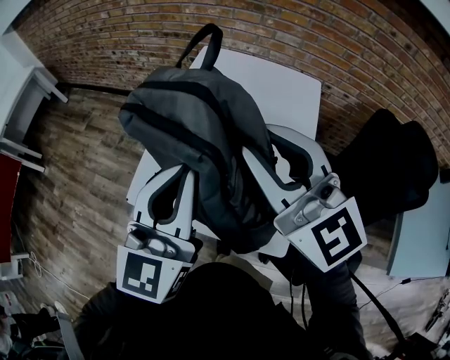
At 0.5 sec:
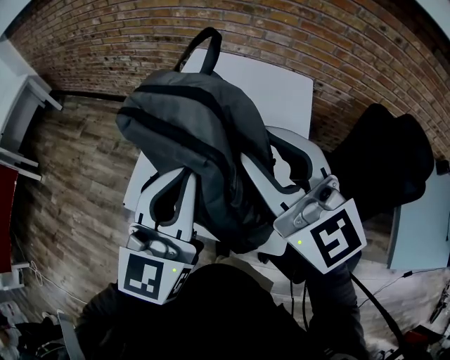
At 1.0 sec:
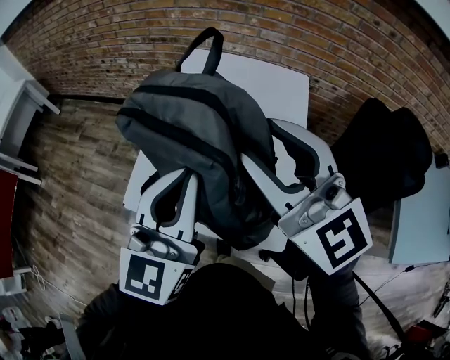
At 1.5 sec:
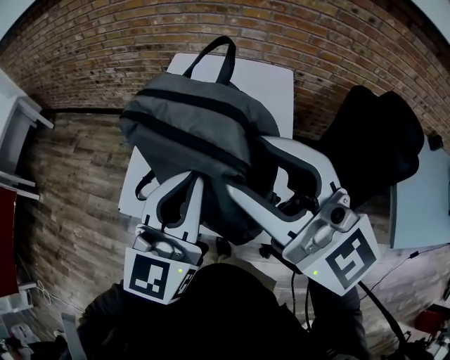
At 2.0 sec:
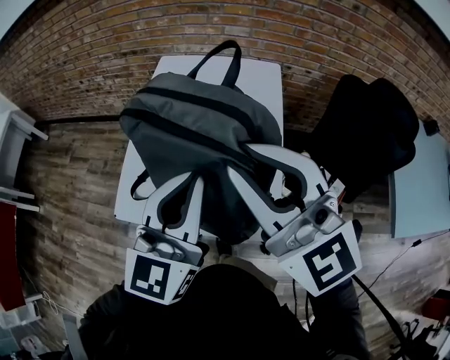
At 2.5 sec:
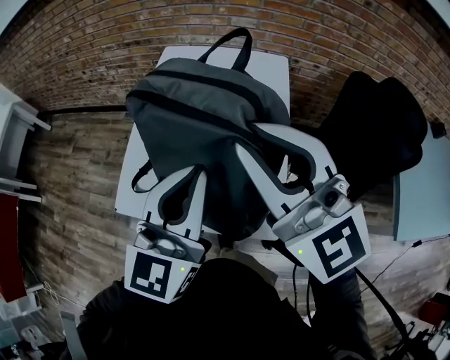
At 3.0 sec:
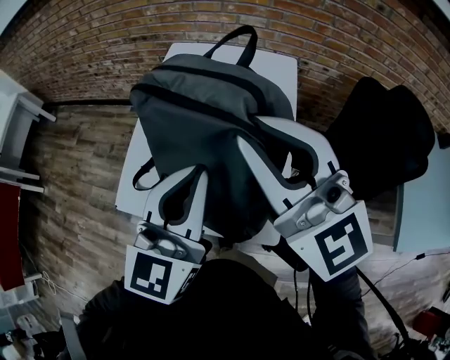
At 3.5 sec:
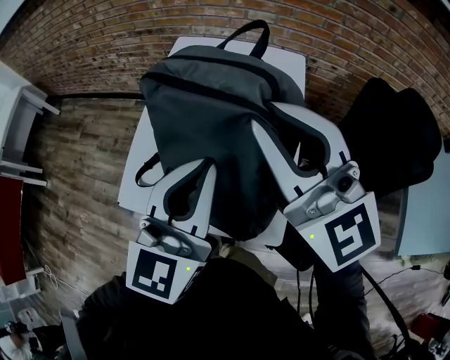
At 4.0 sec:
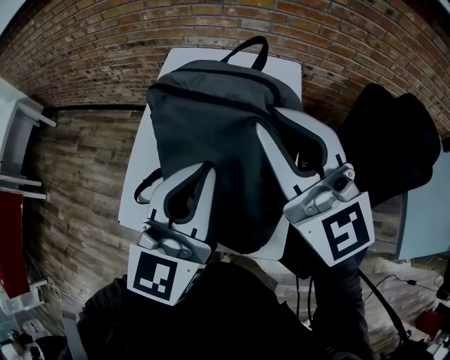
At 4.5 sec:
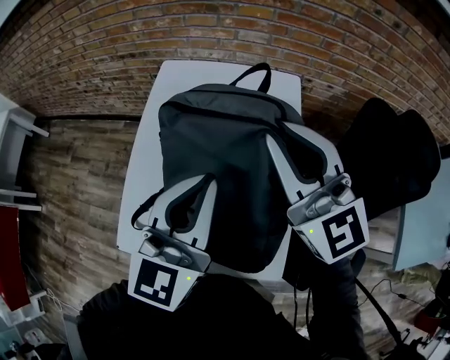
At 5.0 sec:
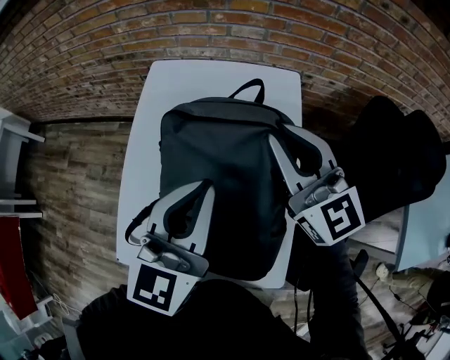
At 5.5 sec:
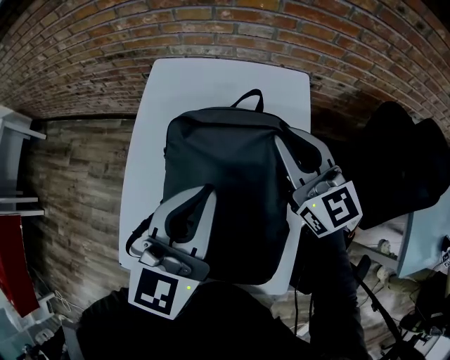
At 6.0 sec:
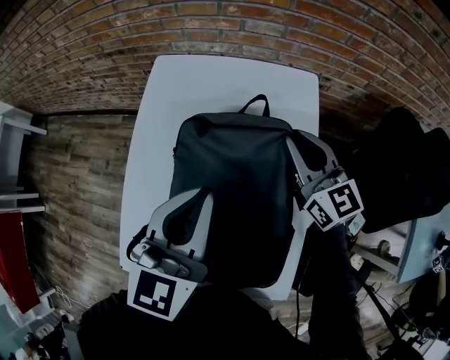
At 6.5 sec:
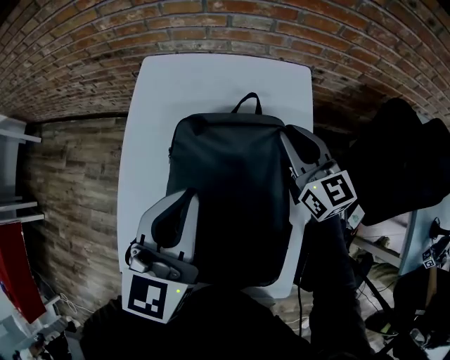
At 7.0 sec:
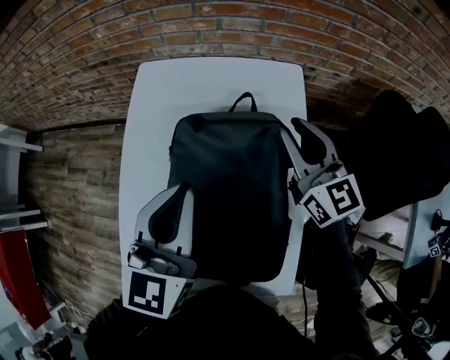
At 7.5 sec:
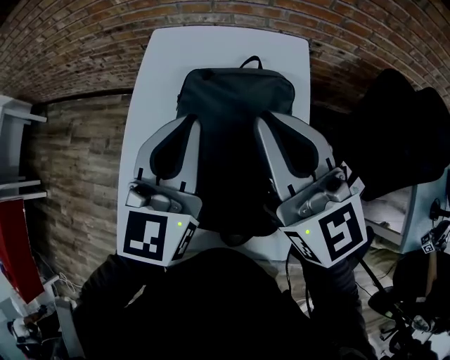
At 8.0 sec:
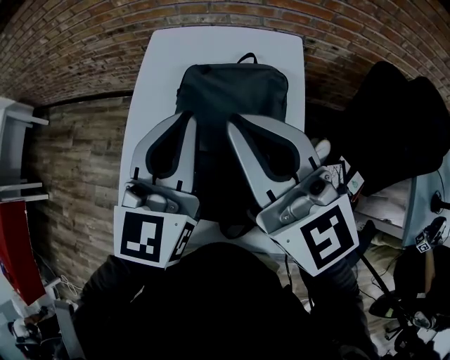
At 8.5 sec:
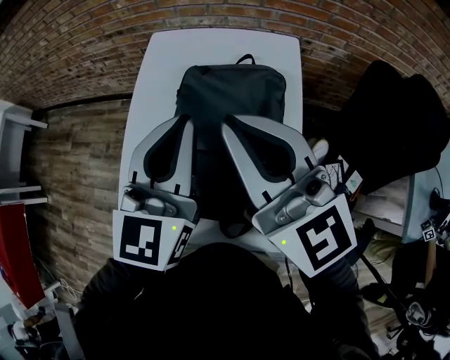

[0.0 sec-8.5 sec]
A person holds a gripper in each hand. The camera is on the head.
0.0 sec to 2.0 sec: The left gripper shifts some 10 cm to the right; the right gripper heads backward, covering some 10 cm.
2.0 sec to 4.0 sec: The right gripper shifts approximately 15 cm forward. The left gripper heads forward, covering roughly 10 cm.
4.0 sec to 6.5 sec: The right gripper moves downward and forward, approximately 35 cm, and turns by some 30 degrees; the left gripper shifts about 20 cm forward and downward.
6.5 sec to 8.5 sec: The left gripper goes about 10 cm upward and backward. The right gripper shifts roughly 30 cm upward, backward and to the left.

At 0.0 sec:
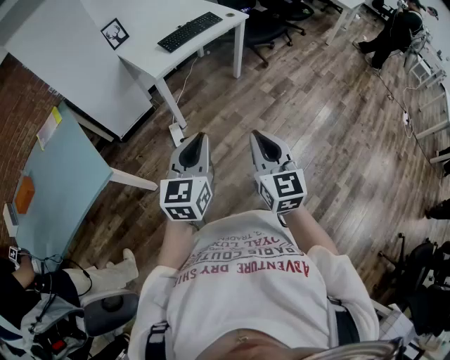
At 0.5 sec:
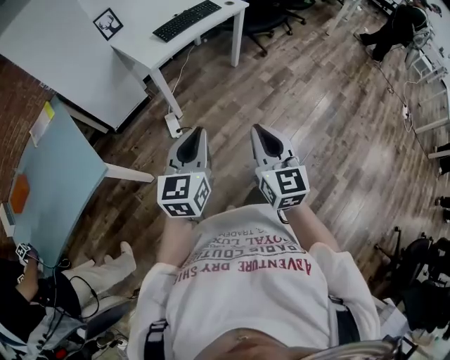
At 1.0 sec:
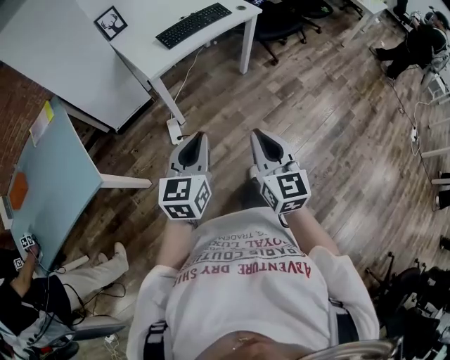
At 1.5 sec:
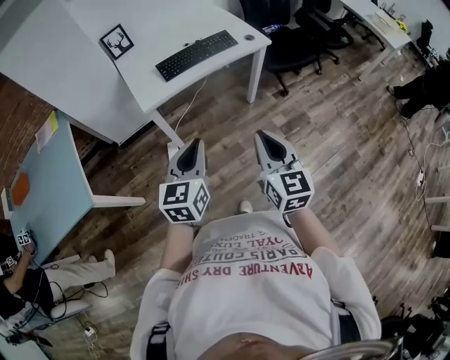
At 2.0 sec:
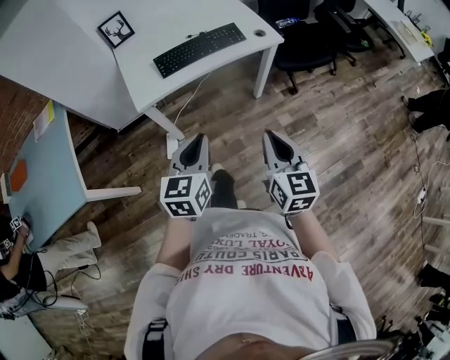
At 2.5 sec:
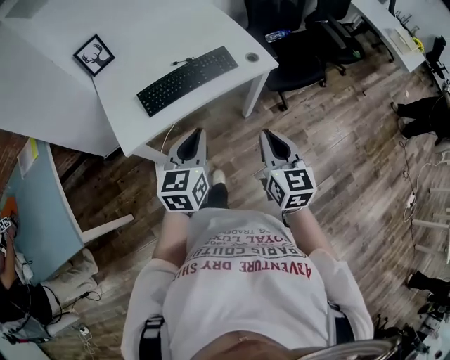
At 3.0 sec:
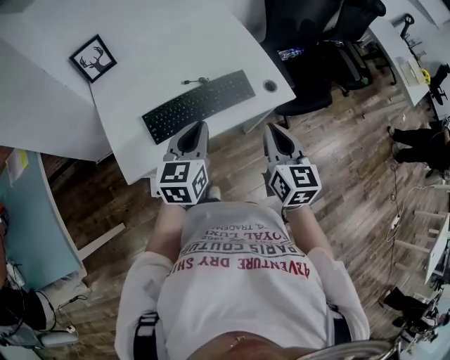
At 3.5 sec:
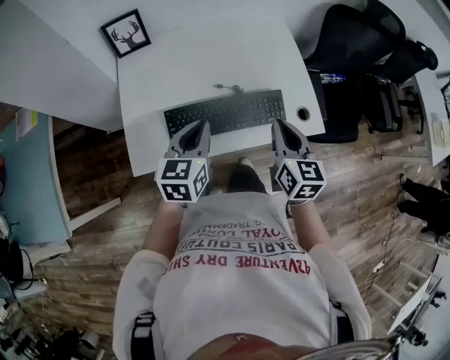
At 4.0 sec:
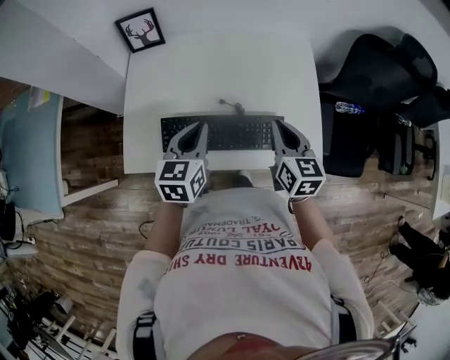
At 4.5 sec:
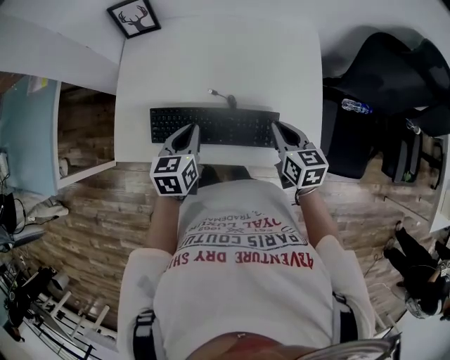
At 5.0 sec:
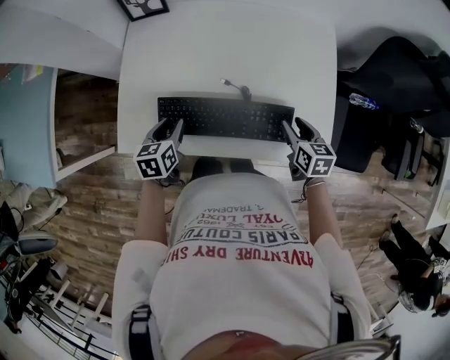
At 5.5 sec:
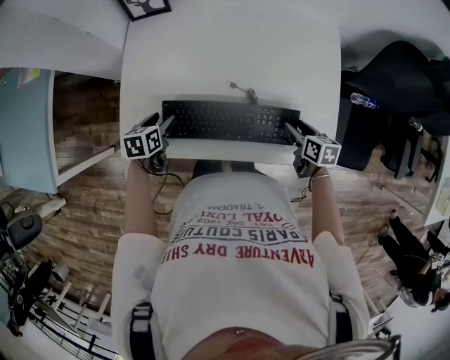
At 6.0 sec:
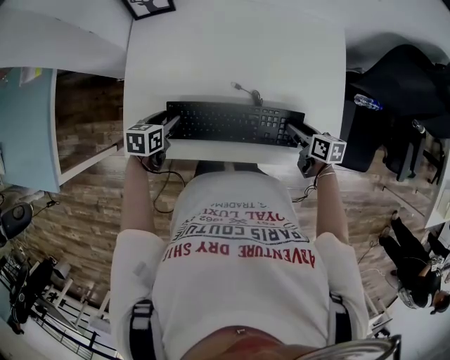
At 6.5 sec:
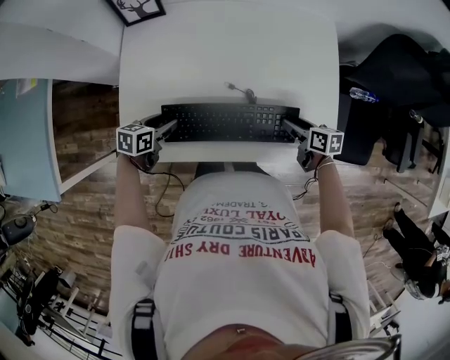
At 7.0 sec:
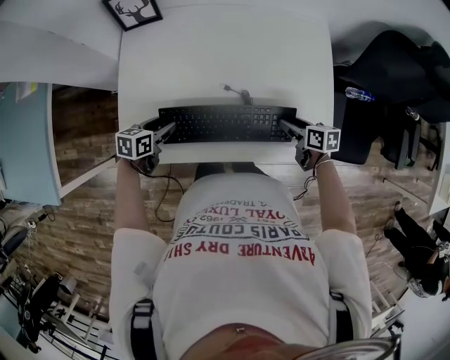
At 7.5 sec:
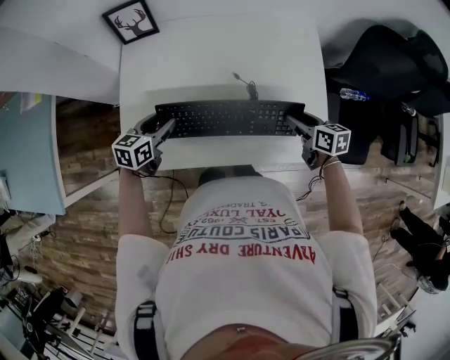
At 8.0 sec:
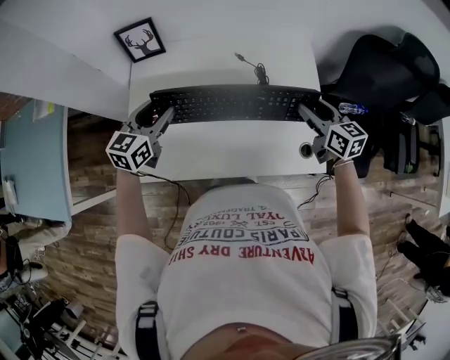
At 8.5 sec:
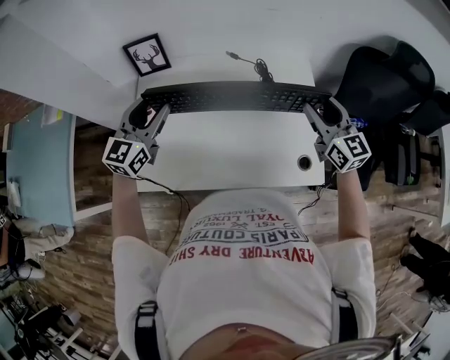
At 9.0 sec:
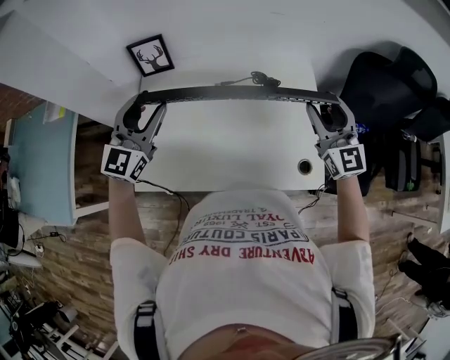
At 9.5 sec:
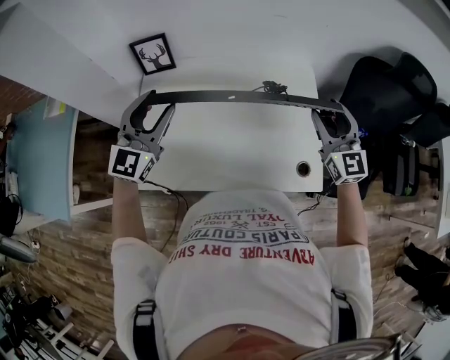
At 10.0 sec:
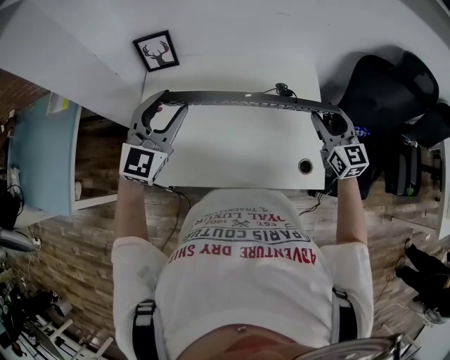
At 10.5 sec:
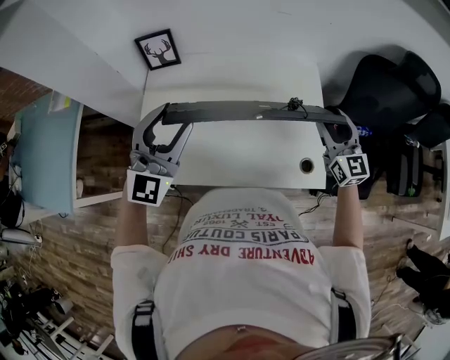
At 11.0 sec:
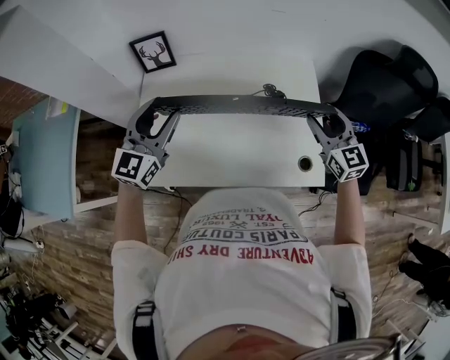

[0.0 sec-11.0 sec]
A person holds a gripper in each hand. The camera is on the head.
0.0 sec to 2.0 sec: Both grippers are carried forward and to the right, roughly 40 cm. The left gripper swivels roughly 20 degrees.
2.0 sec to 3.5 sec: The pair of grippers is taken forward, about 50 cm.
3.5 sec to 5.5 sec: The left gripper travels downward and to the left by some 25 cm, tilts its fingers approximately 30 degrees downward, and opens. The right gripper shifts approximately 30 cm downward, to the right and forward, turns by some 40 degrees, and opens.
5.5 sec to 7.5 sec: The two grippers go about 10 cm upward. The left gripper rotates approximately 30 degrees.
7.5 sec to 9.0 sec: The grippers both shift upward by some 25 cm. The right gripper tilts its fingers approximately 40 degrees upward, while the left gripper tilts its fingers some 30 degrees upward.
9.0 sec to 11.0 sec: The right gripper is displaced downward by about 5 cm.

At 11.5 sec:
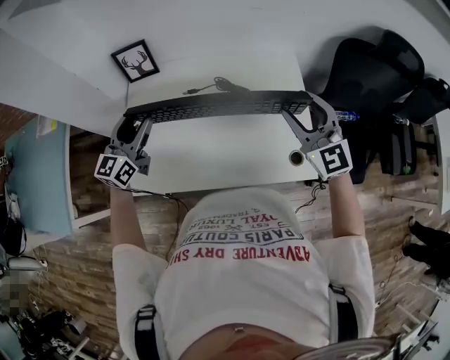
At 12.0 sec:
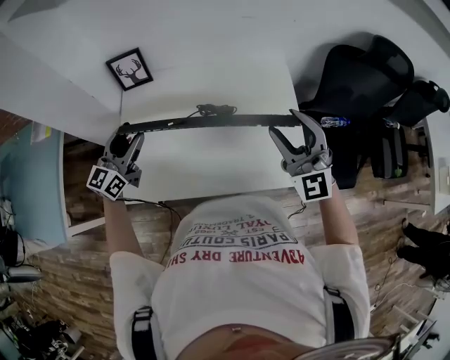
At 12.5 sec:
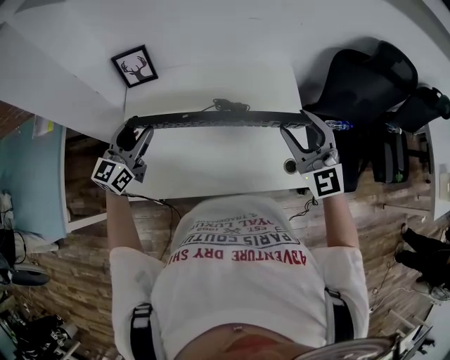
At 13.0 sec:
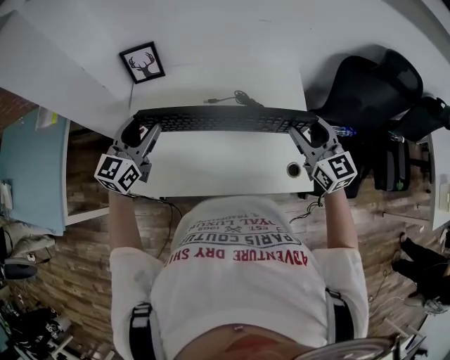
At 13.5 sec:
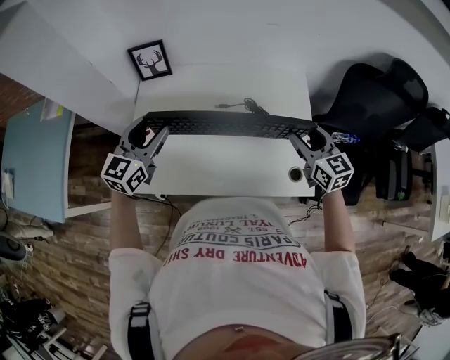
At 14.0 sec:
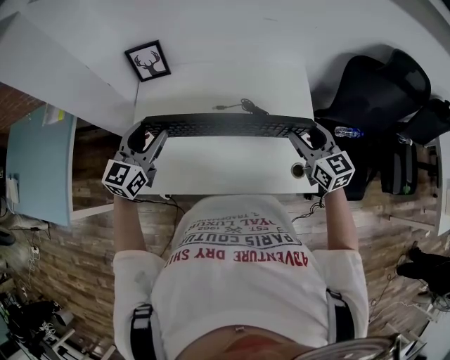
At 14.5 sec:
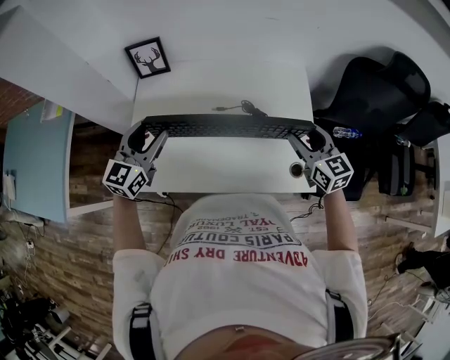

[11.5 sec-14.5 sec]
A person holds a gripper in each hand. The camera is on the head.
11.5 sec to 13.0 sec: The right gripper ends up roughly 5 cm from where it was, and rotates approximately 20 degrees.
13.0 sec to 14.5 sec: The right gripper goes some 5 cm downward.

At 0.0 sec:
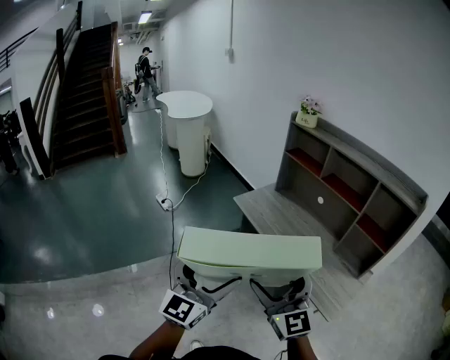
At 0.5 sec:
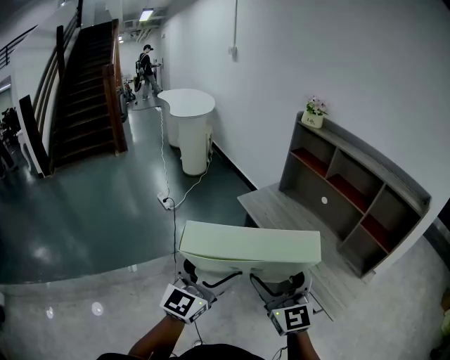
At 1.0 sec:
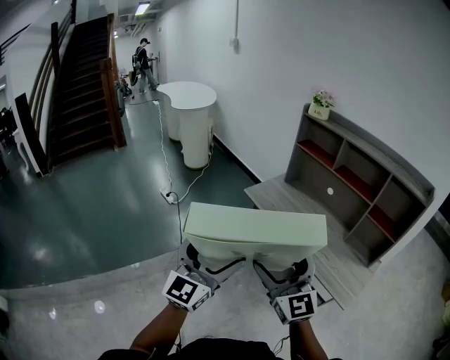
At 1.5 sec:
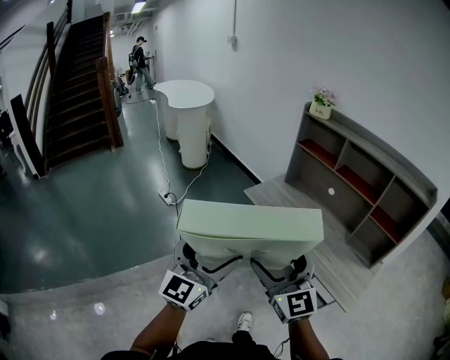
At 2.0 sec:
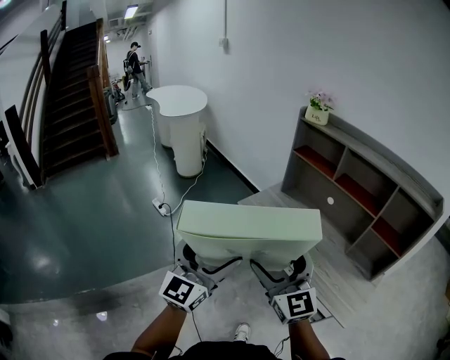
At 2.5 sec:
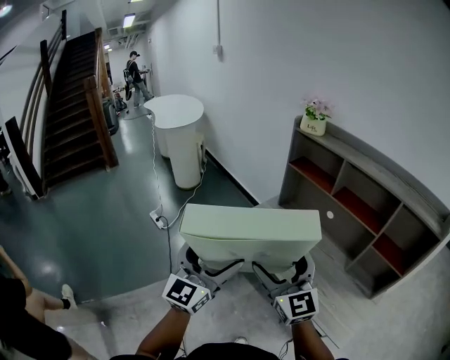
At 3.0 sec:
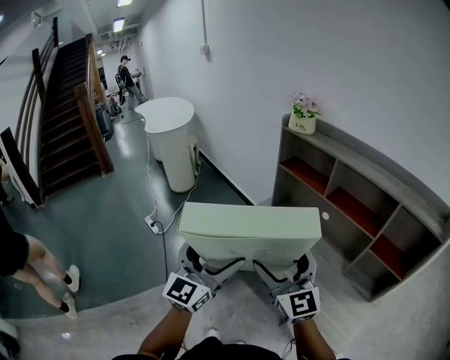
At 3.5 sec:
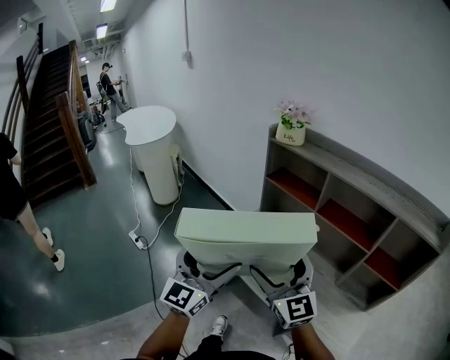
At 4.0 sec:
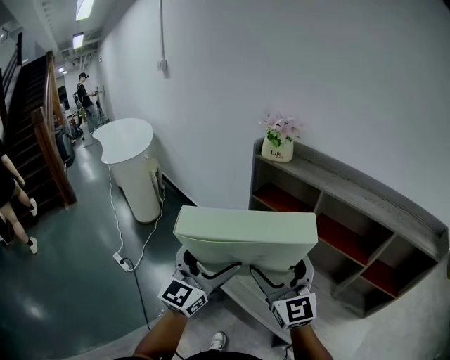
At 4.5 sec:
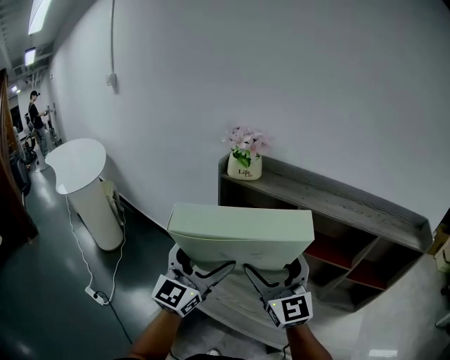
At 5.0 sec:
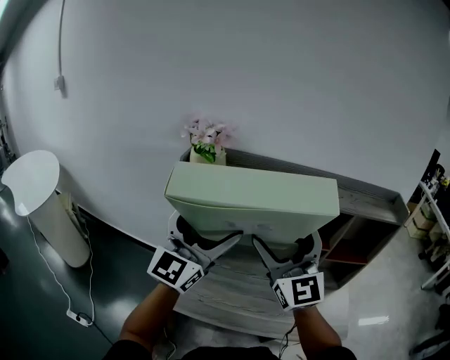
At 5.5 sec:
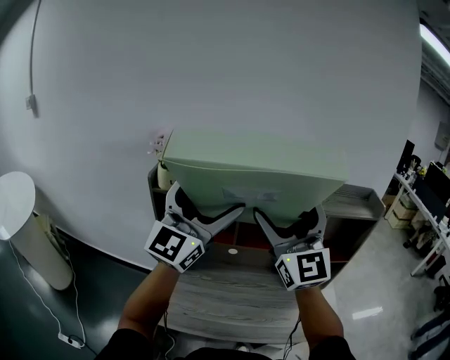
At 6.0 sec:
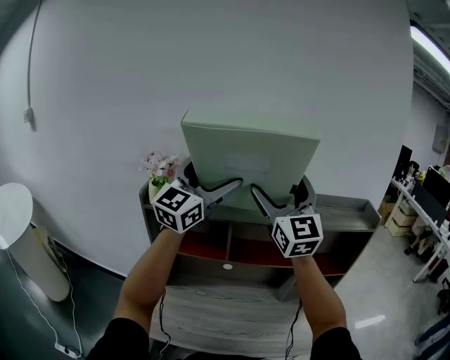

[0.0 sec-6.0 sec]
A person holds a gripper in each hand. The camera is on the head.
0.0 sec to 2.0 sec: The two grippers go some 15 cm forward and to the left.
2.0 sec to 4.0 sec: The right gripper travels forward and to the right by some 35 cm, while the left gripper is displaced forward by some 35 cm.
4.0 sec to 6.0 sec: The right gripper shifts by roughly 35 cm, and changes its angle by roughly 40 degrees. The left gripper ends up roughly 40 cm from where it was, and turns by approximately 40 degrees.
